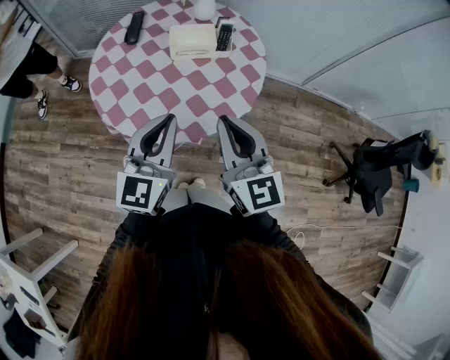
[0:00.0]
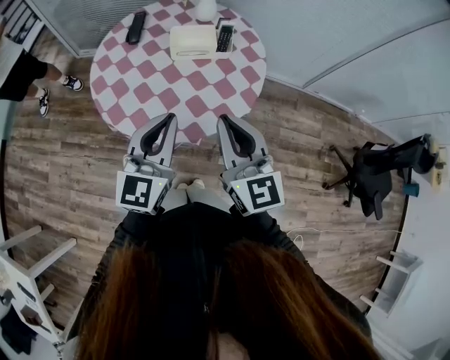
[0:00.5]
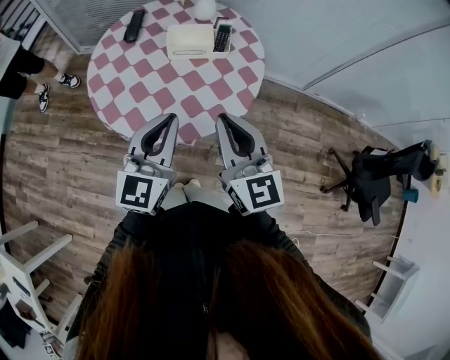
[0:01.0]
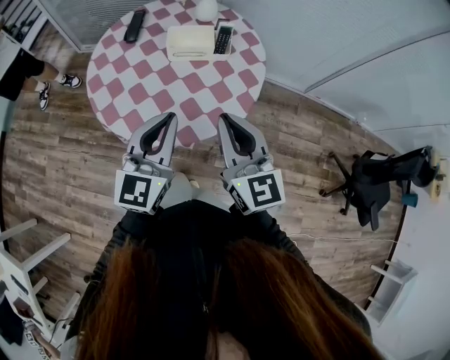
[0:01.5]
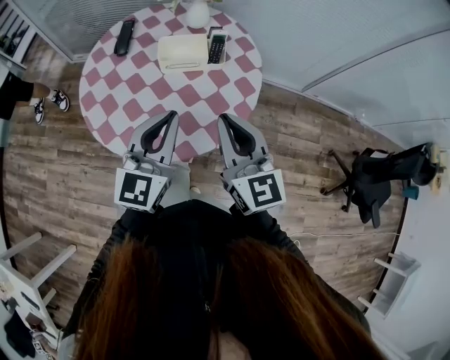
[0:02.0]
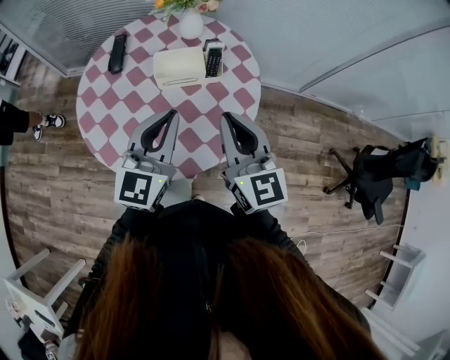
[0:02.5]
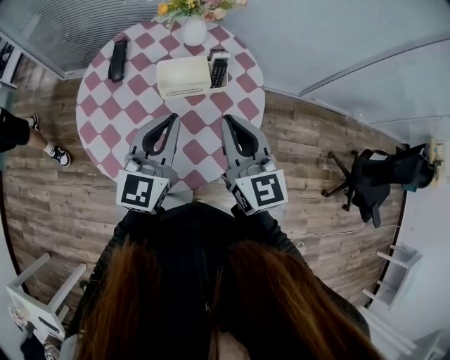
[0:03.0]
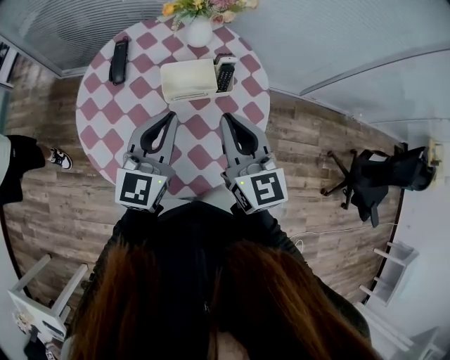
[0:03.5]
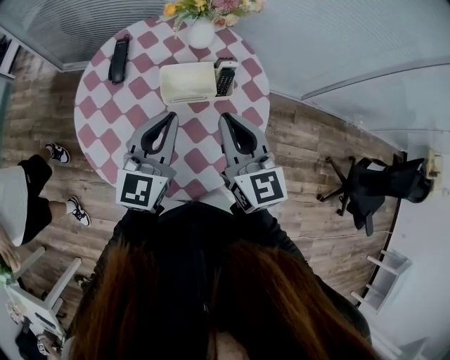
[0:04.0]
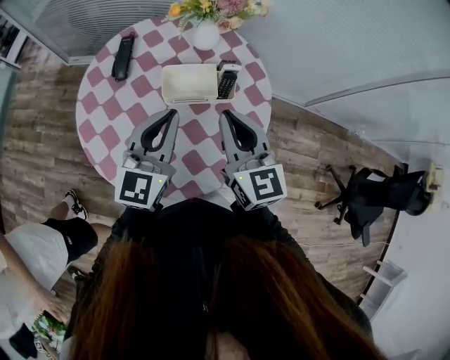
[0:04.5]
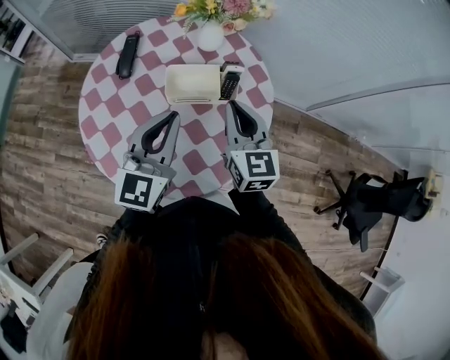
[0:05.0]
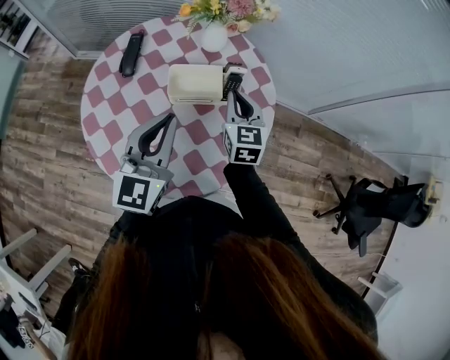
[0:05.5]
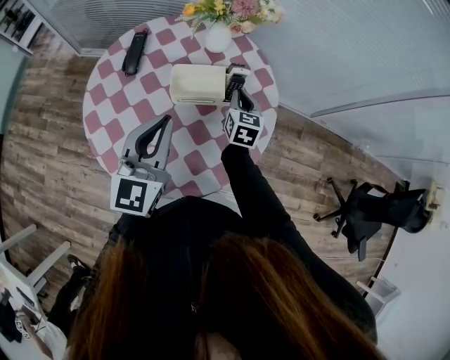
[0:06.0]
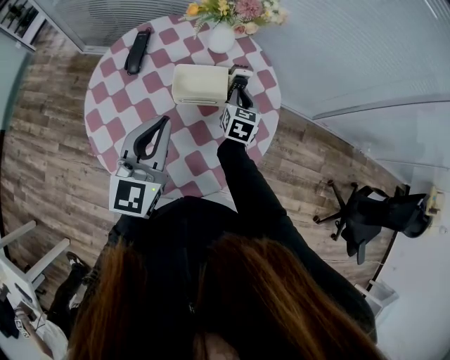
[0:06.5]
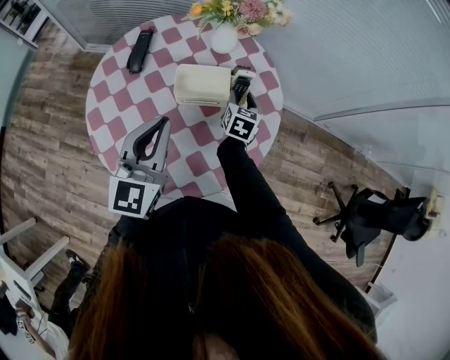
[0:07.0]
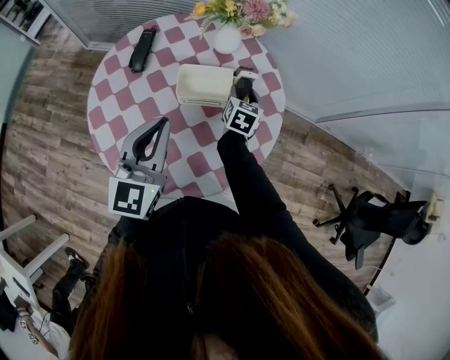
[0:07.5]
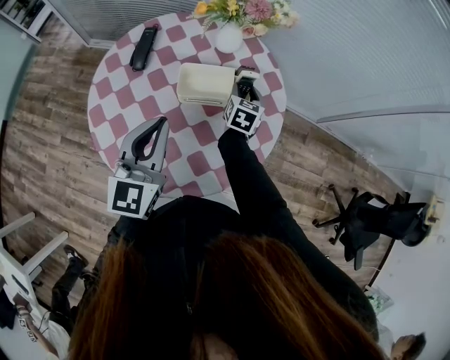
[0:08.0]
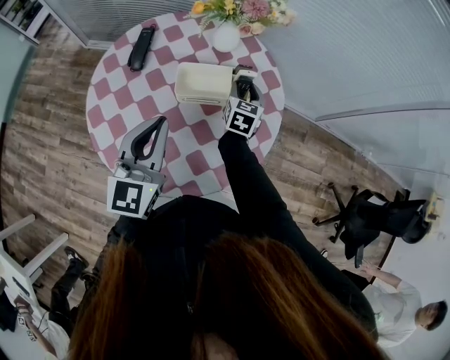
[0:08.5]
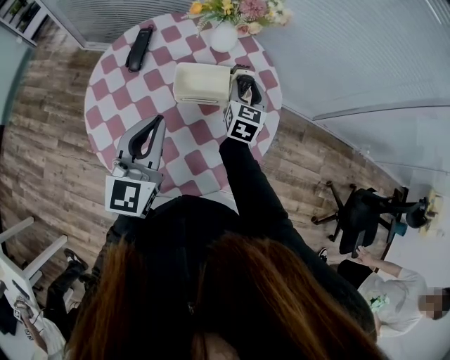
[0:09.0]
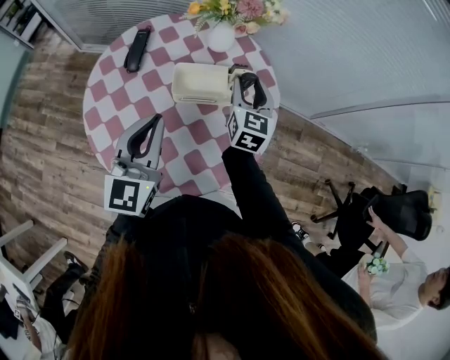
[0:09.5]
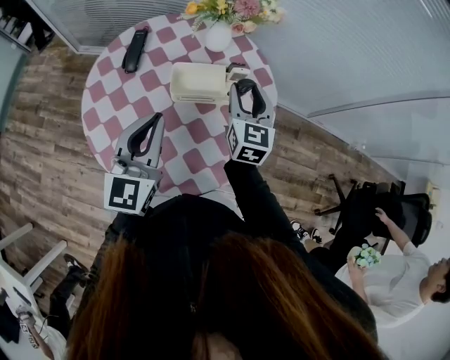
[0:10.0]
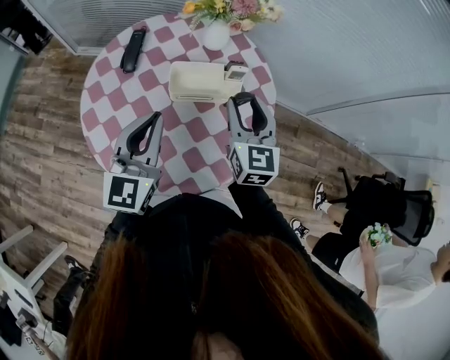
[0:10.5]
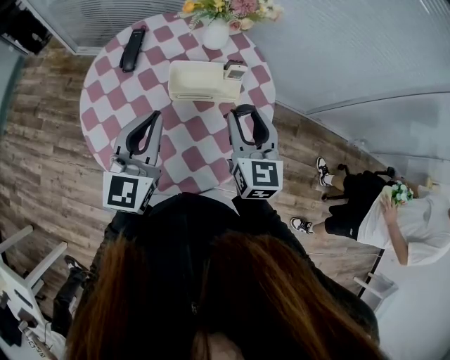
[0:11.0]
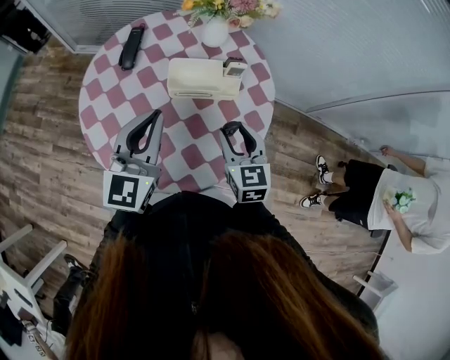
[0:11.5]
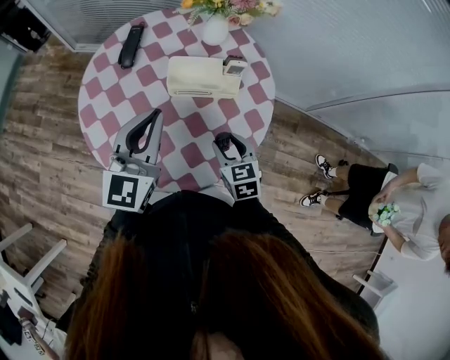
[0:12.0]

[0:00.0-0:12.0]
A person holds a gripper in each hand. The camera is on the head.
0:00.0 to 0:02.0: The two grippers go some 10 cm forward.
0:02.0 to 0:04.0: Both grippers travel together forward, roughly 15 cm.
0:04.0 to 0:06.0: The right gripper goes about 25 cm downward and forward, and changes its angle by roughly 30 degrees.
0:06.0 to 0:08.0: The right gripper moves roughly 5 cm, and opens up.
0:08.0 to 0:10.0: The right gripper heads upward and backward, covering approximately 15 cm, and turns by roughly 20 degrees.
0:10.0 to 0:12.0: The right gripper shifts about 20 cm backward and downward, and swivels some 30 degrees.

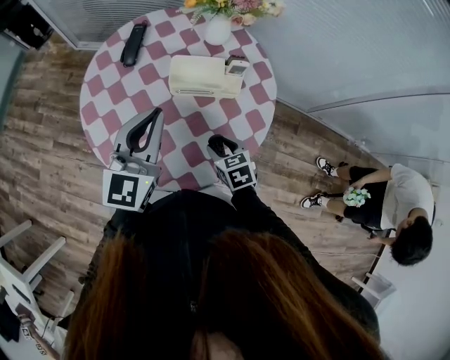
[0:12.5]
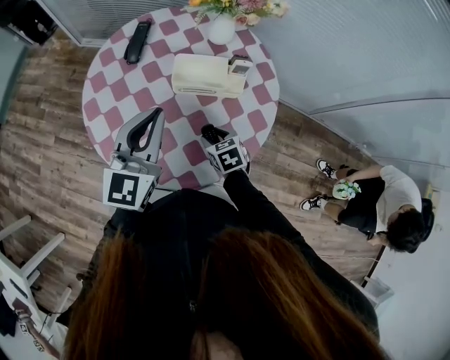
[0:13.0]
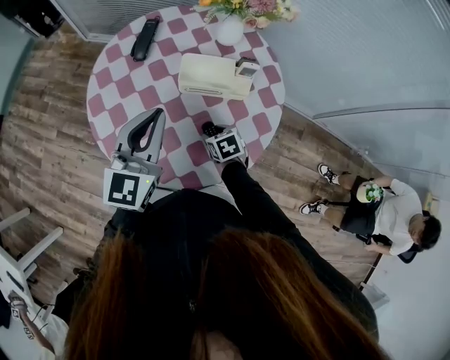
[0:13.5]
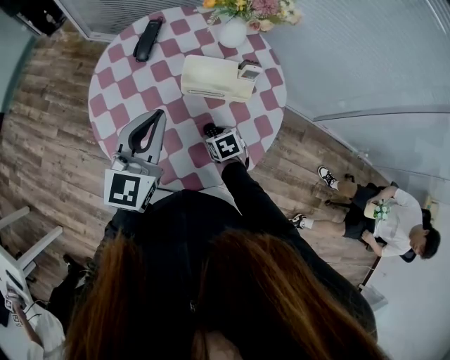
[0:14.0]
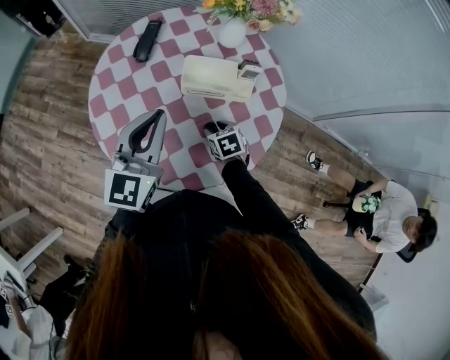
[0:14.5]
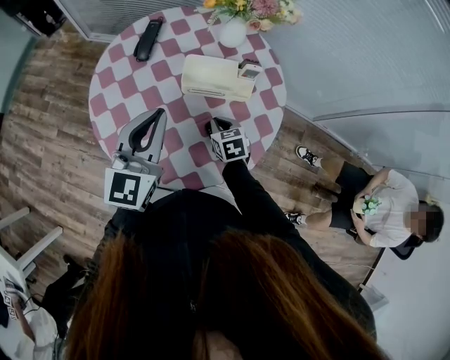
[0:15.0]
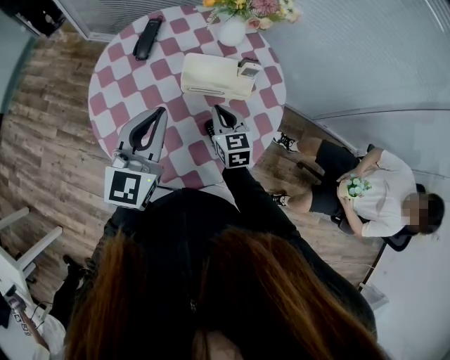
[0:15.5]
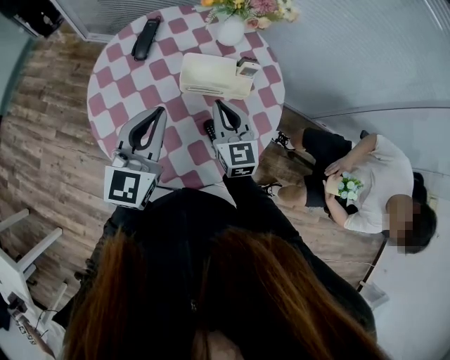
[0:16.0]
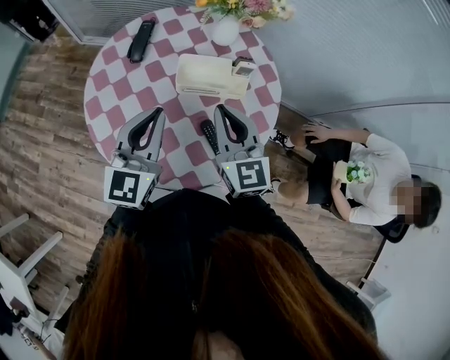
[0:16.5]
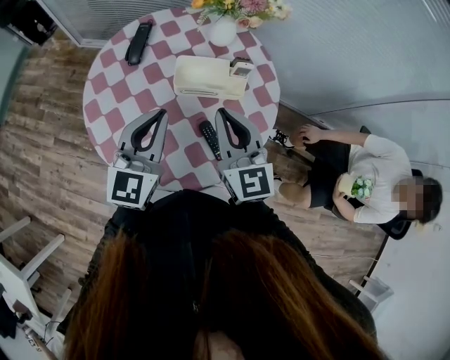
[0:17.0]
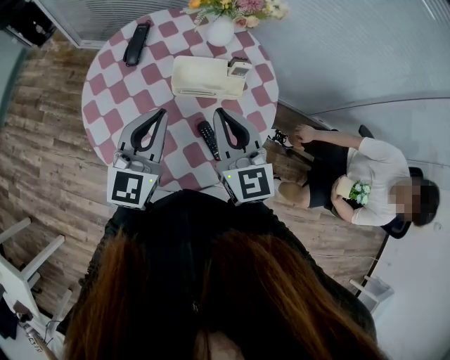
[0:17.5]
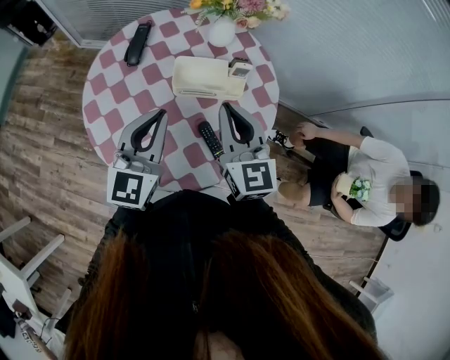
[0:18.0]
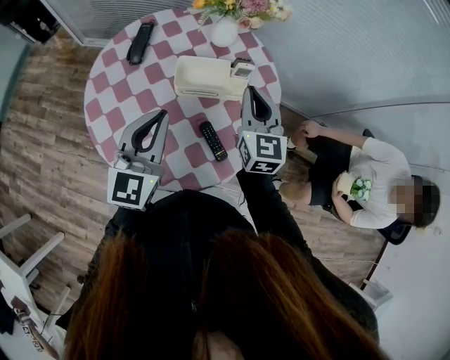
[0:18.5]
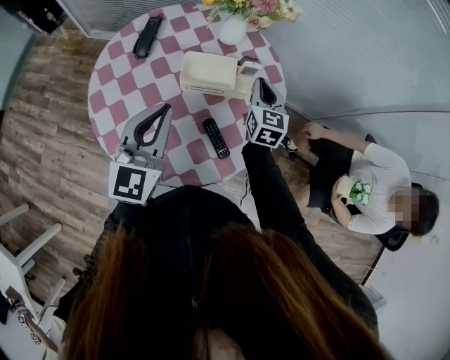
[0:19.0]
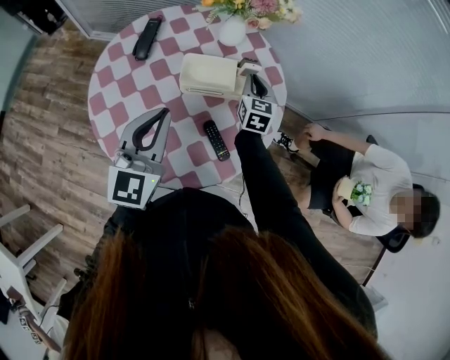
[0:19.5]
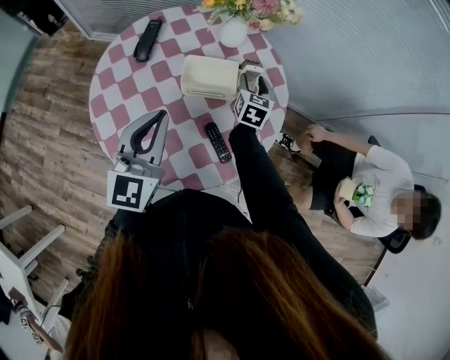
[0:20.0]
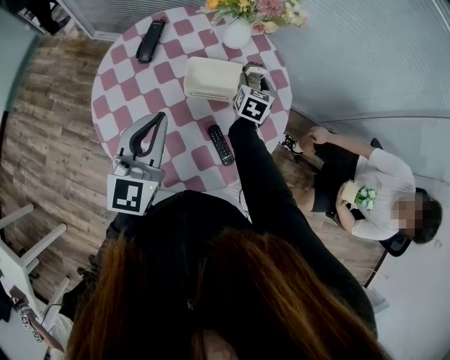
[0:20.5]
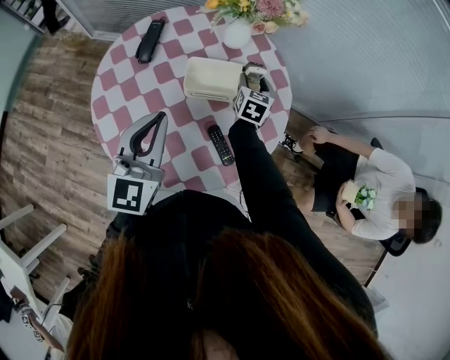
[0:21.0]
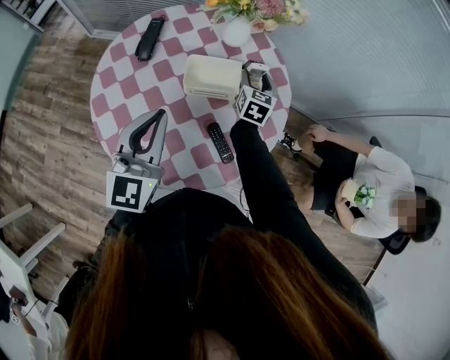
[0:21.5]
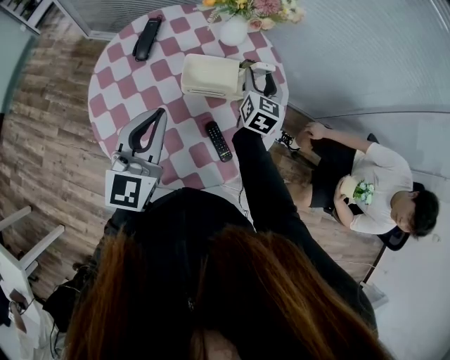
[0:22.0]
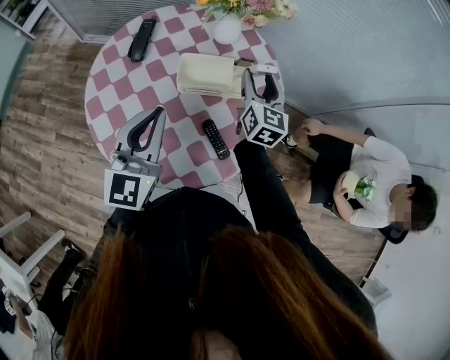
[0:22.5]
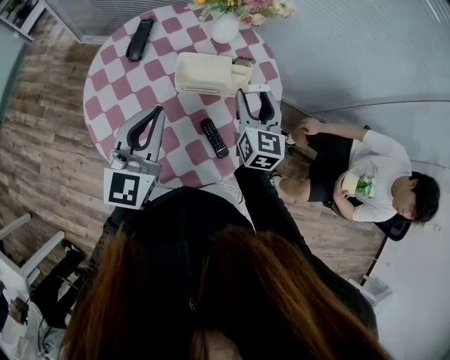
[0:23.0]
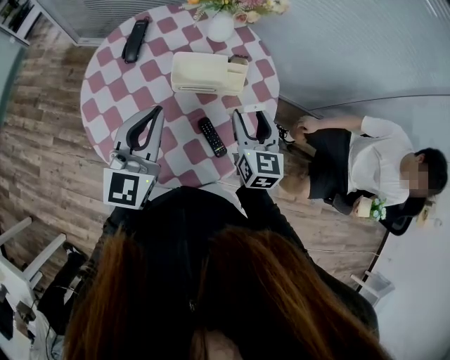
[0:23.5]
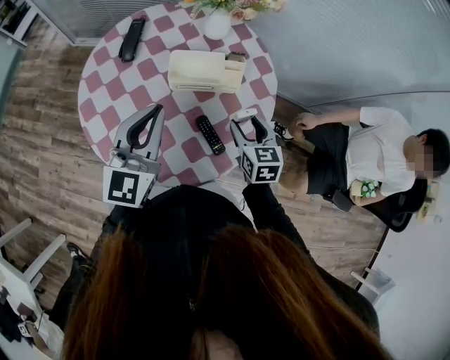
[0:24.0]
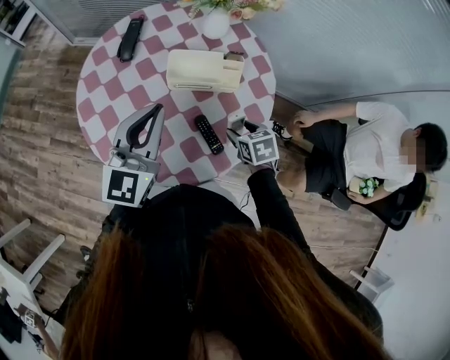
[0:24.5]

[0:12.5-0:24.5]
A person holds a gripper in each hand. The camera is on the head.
0:12.5 to 0:14.5: The right gripper is displaced forward and downward by roughly 10 cm.
0:14.5 to 0:16.5: The right gripper is displaced upward by approximately 25 cm, points its fingers roughly 50 degrees further upward, and closes its fingers.
0:16.5 to 0:18.5: The right gripper moves to the right and forward, roughly 10 cm.
0:18.5 to 0:20.5: The right gripper travels downward and forward by some 20 cm, changes its angle by approximately 30 degrees, and opens up.
0:20.5 to 0:22.5: The right gripper shifts roughly 15 cm upward and backward, and swivels roughly 20 degrees.
0:22.5 to 0:24.5: The right gripper travels backward and downward by approximately 20 cm, and angles its fingers downward, by about 50 degrees.

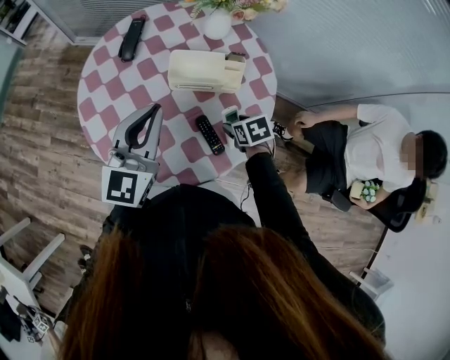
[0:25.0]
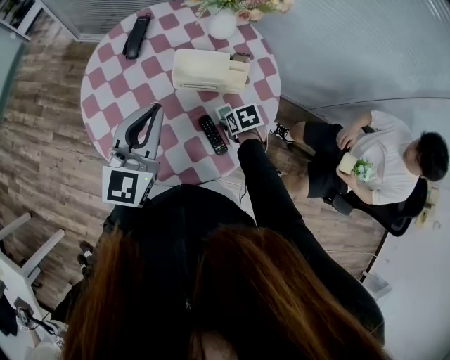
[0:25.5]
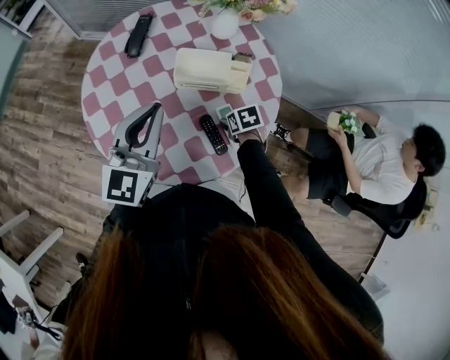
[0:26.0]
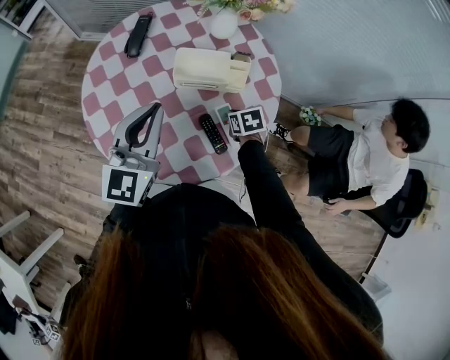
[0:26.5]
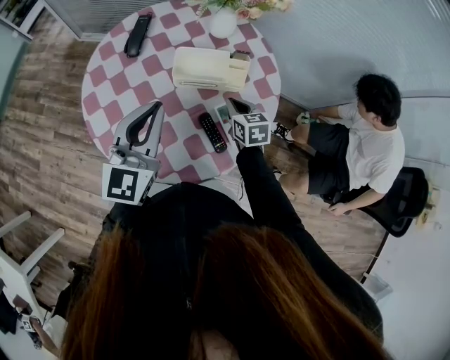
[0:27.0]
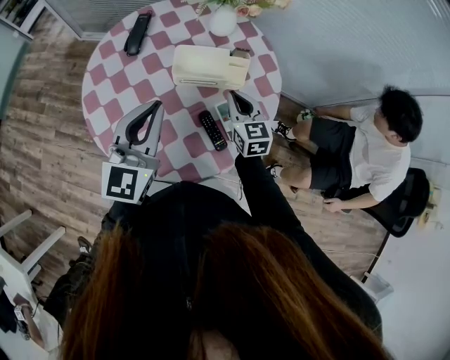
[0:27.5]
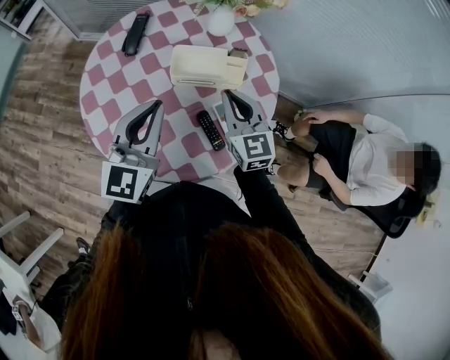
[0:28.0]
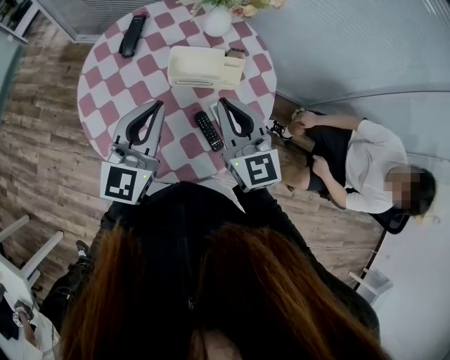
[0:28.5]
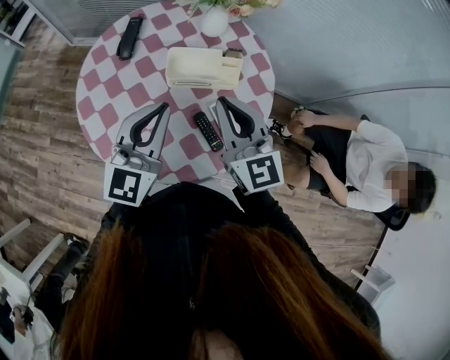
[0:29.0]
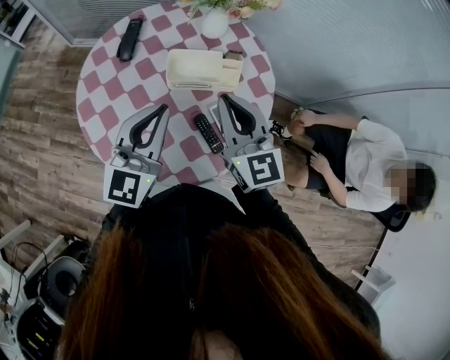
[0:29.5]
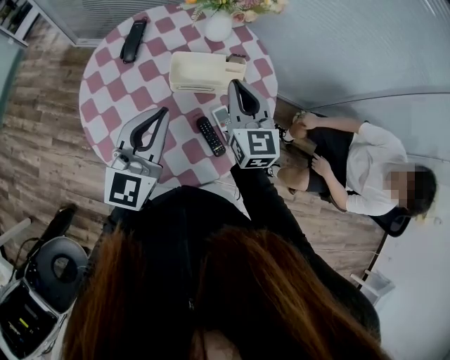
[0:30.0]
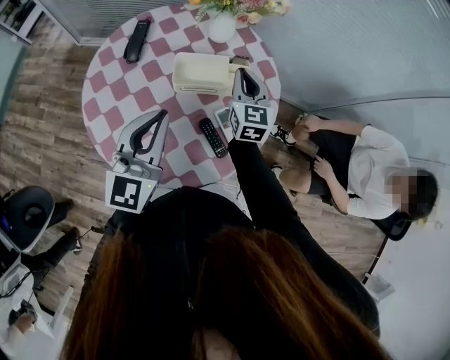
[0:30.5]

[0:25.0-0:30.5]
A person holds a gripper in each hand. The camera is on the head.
0:25.0 to 0:27.0: The right gripper shifts about 5 cm forward, travels downward and back again, about 5 cm each way, rotates approximately 30 degrees, and closes.
0:27.0 to 0:28.5: The right gripper moves upward, some 20 cm, and tilts its fingers roughly 30 degrees upward.
0:28.5 to 0:30.5: The right gripper travels forward and downward by about 15 cm.
